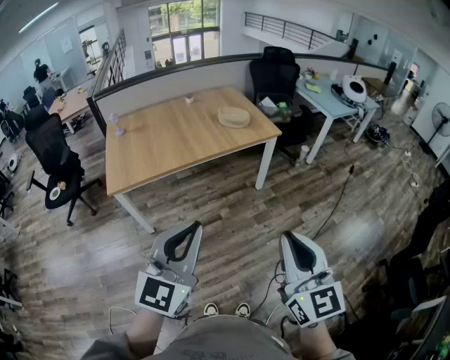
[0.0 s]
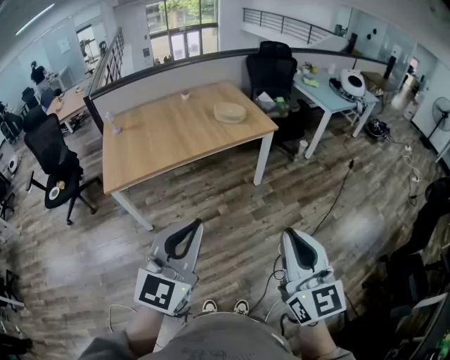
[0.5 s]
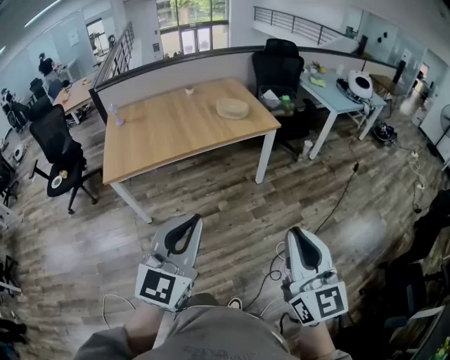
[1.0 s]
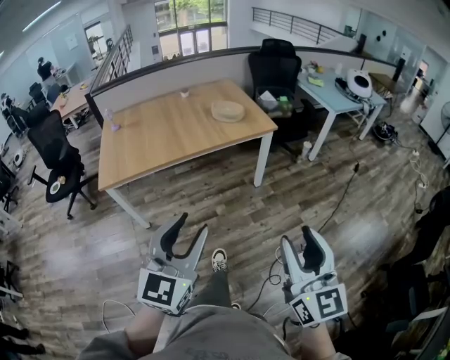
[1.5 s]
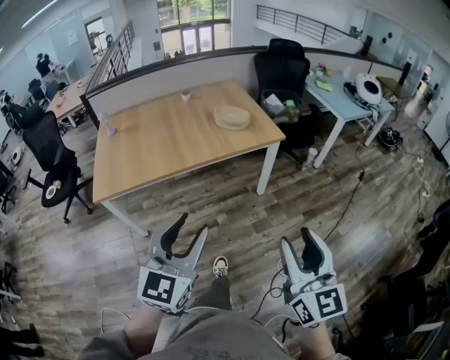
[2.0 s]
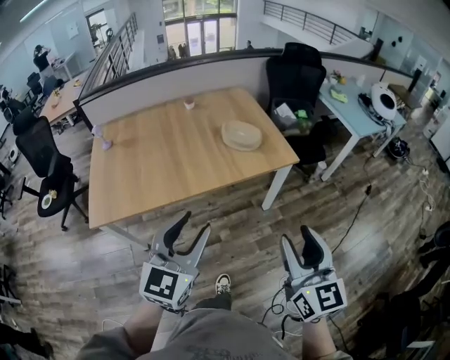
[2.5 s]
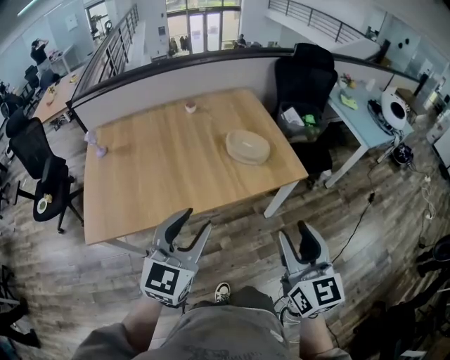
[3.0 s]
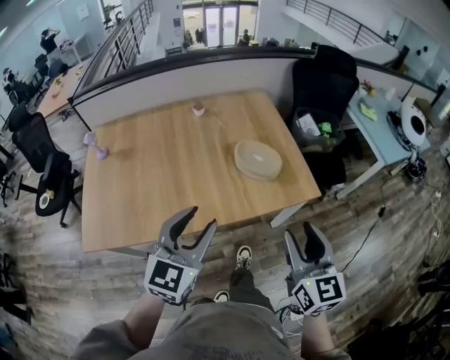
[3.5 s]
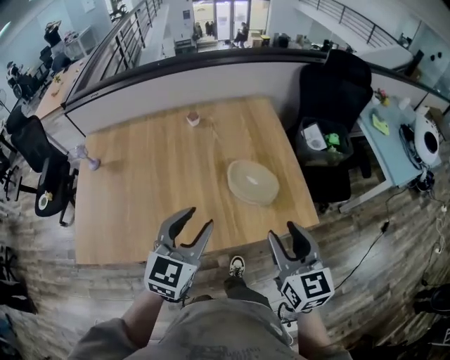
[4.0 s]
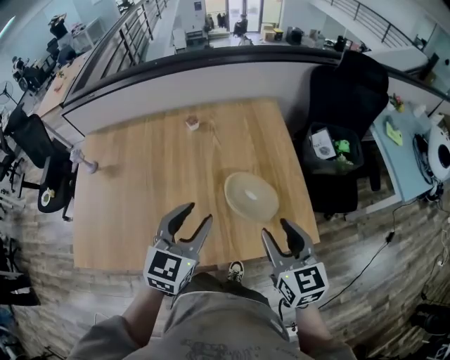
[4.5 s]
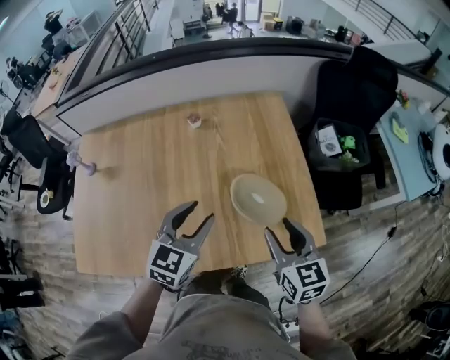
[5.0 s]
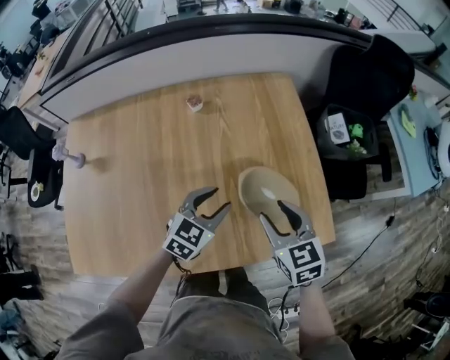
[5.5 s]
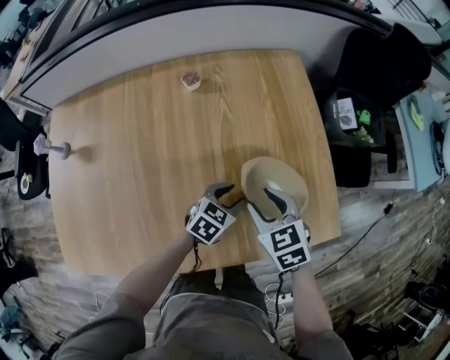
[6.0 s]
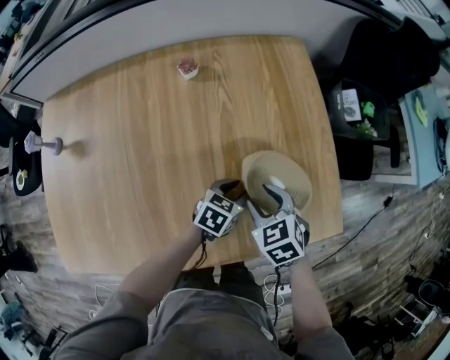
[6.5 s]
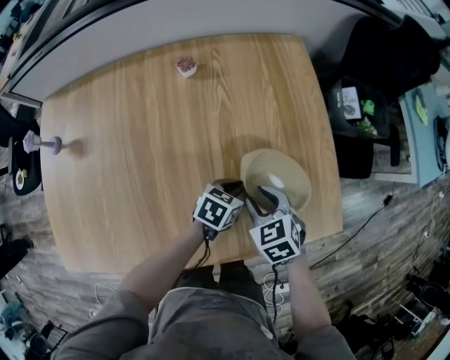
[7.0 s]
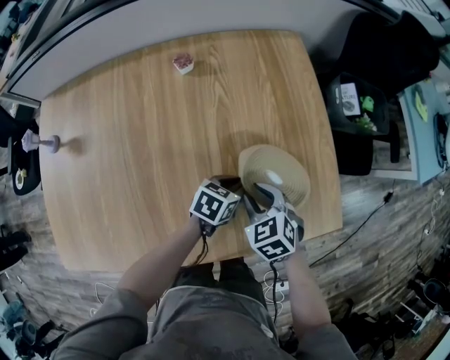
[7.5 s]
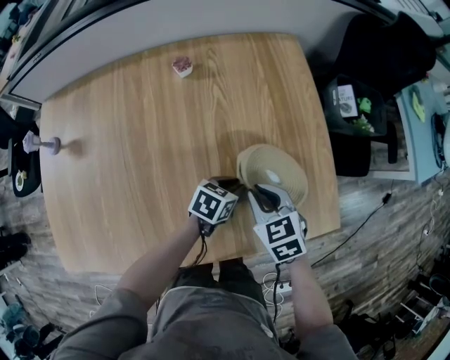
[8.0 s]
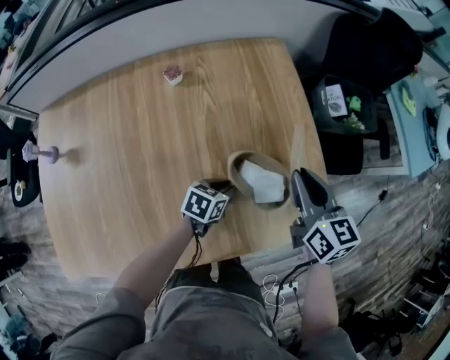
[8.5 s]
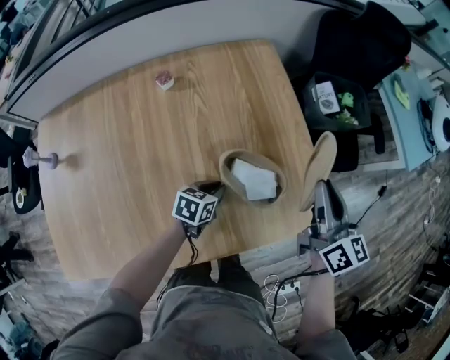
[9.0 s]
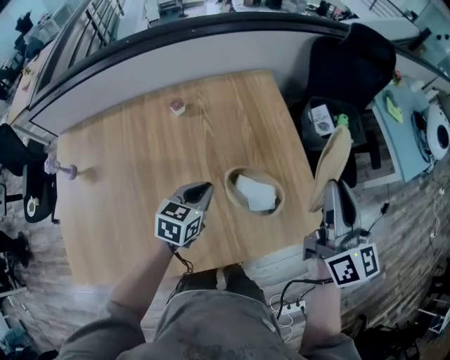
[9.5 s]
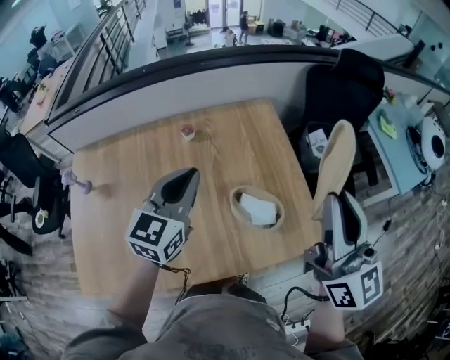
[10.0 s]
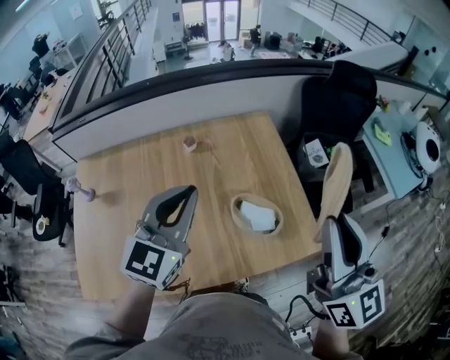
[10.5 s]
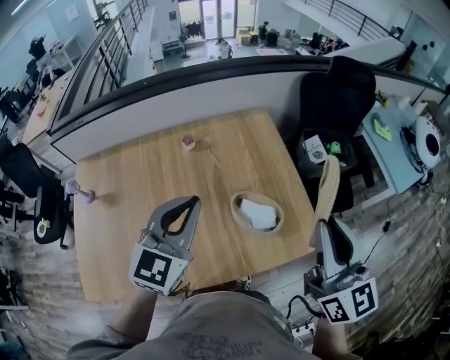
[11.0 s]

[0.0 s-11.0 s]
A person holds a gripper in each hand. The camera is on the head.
0.0 to 2.0 s: The left gripper travels forward by roughly 15 cm, and opens. Meanwhile the right gripper moves forward and to the right, roughly 20 cm, and opens up.
2.0 to 3.5 s: The two grippers travel together, forward, some 50 cm.
3.5 to 5.5 s: Both grippers move forward and downward, about 40 cm. The right gripper swivels about 30 degrees. The left gripper turns by about 20 degrees.
5.5 to 7.5 s: The grippers both shift downward by roughly 15 cm. The left gripper changes its angle by some 40 degrees, and closes up; the right gripper rotates approximately 30 degrees.
7.5 to 9.0 s: The right gripper goes about 25 cm upward and to the right, and angles its fingers upward, by about 50 degrees.
9.0 to 11.0 s: The left gripper shifts approximately 40 cm upward, and tilts its fingers roughly 30 degrees upward. The right gripper goes approximately 25 cm upward and backward, and swivels about 20 degrees.

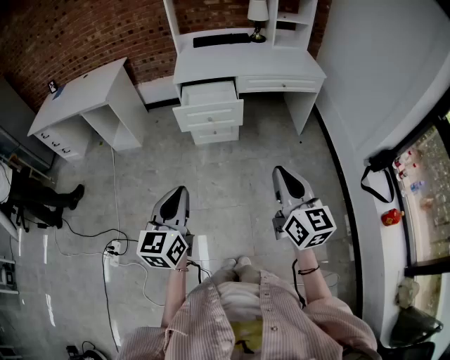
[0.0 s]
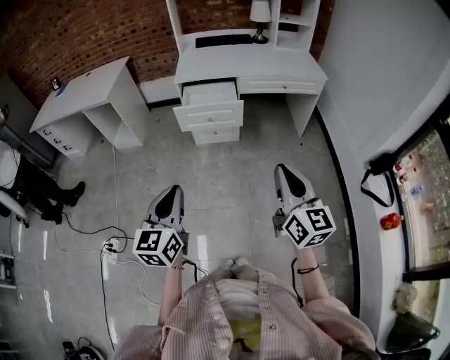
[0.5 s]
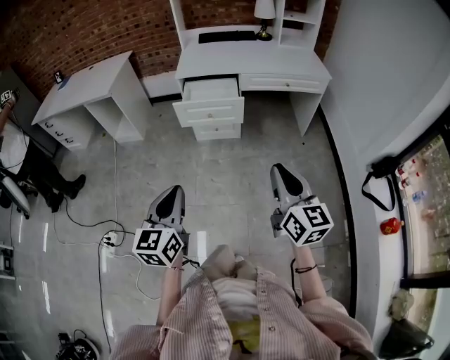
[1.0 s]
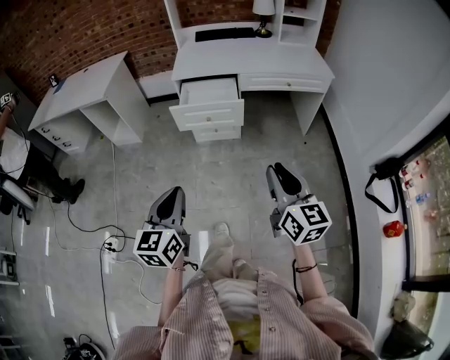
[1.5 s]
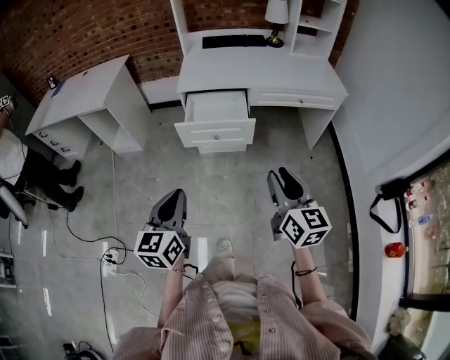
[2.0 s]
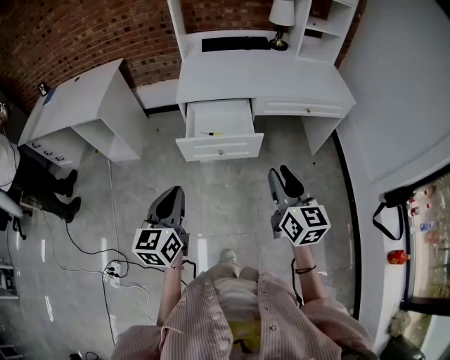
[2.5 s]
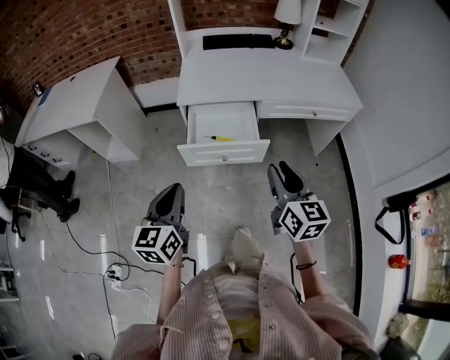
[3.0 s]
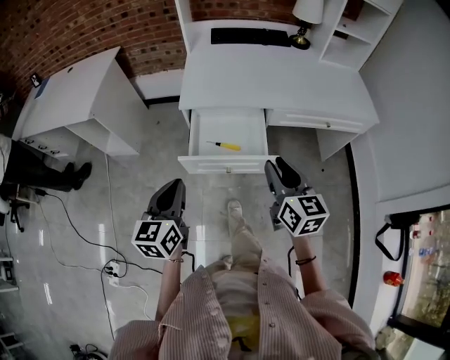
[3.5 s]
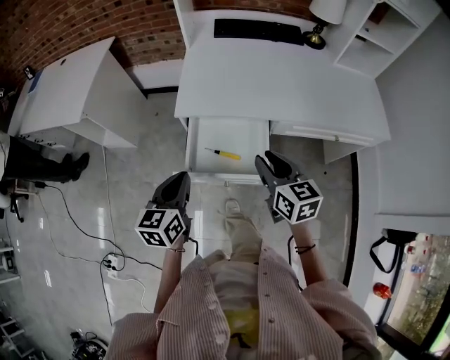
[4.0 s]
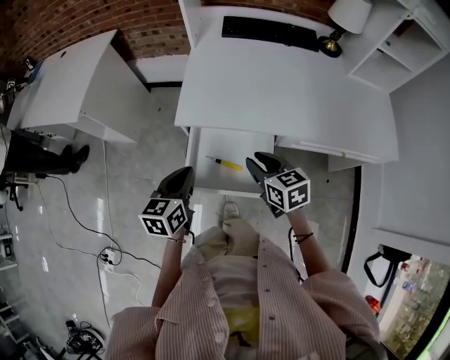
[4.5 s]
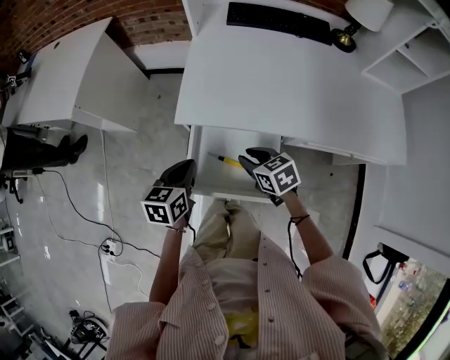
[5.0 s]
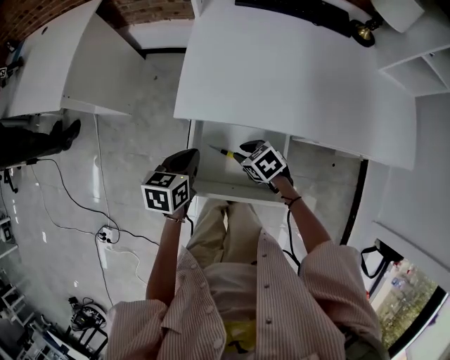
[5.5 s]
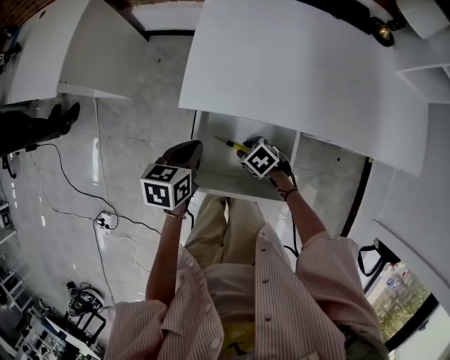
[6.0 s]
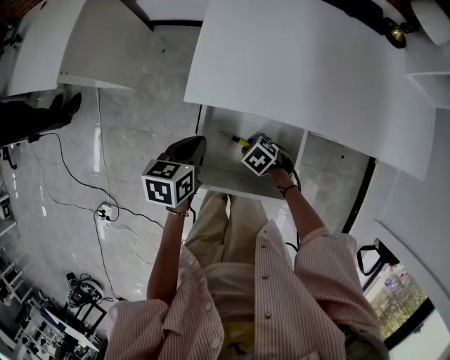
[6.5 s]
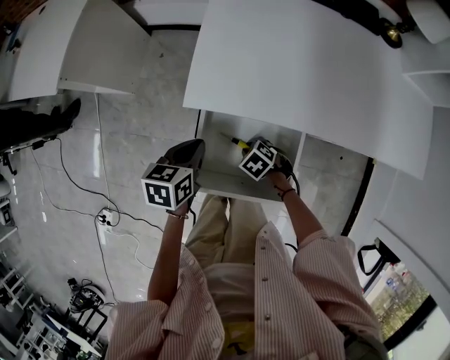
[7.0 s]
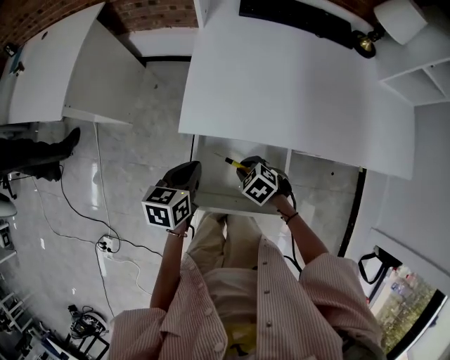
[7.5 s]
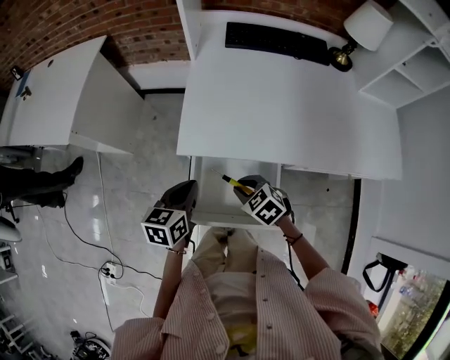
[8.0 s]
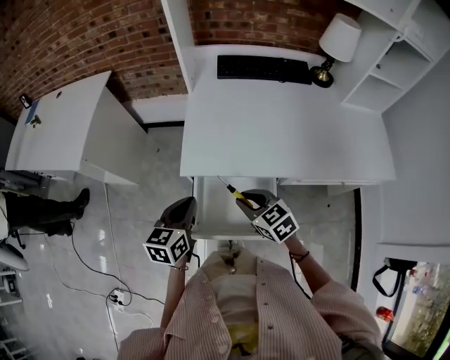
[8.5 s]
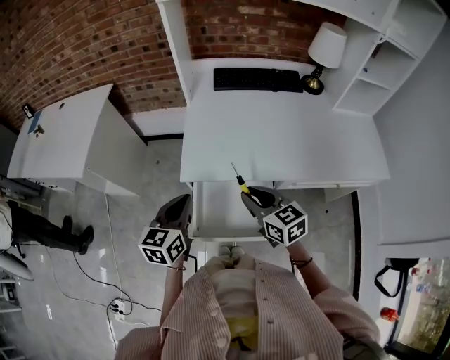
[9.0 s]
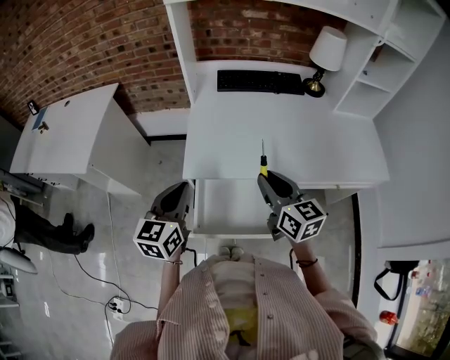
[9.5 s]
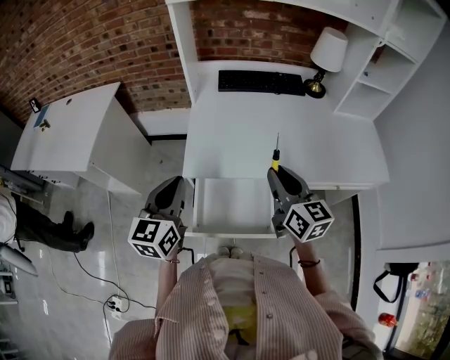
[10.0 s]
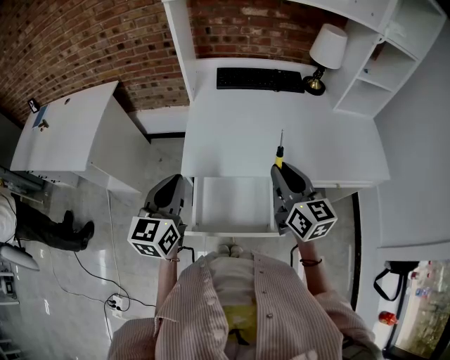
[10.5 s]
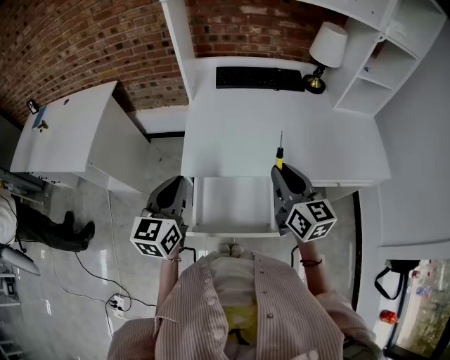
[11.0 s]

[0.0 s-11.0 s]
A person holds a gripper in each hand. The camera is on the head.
0.0 to 2.0 s: Both grippers move forward, some 20 cm. The right gripper opens its fingers.
2.0 to 3.5 s: Both grippers move forward, roughly 30 cm.
3.5 to 5.5 s: The right gripper shifts roughly 40 cm downward and forward, and angles its fingers downward, by about 40 degrees, while the left gripper is displaced forward and downward by roughly 30 cm, and changes its angle by some 30 degrees.
5.5 to 7.5 s: The right gripper moves roughly 10 cm downward and comes back.
7.5 to 9.0 s: The right gripper shifts some 25 cm upward, and points its fingers roughly 40 degrees further upward. The left gripper moves upward, some 15 cm, and changes its angle by approximately 20 degrees.
9.0 to 11.0 s: The left gripper travels upward by about 5 cm. Meanwhile the right gripper goes about 10 cm to the right and upward, and changes its angle by approximately 20 degrees.

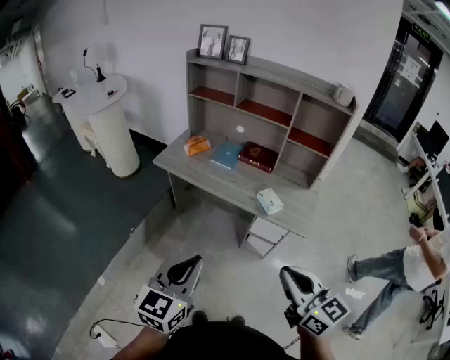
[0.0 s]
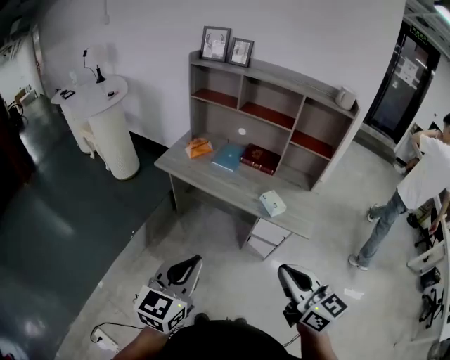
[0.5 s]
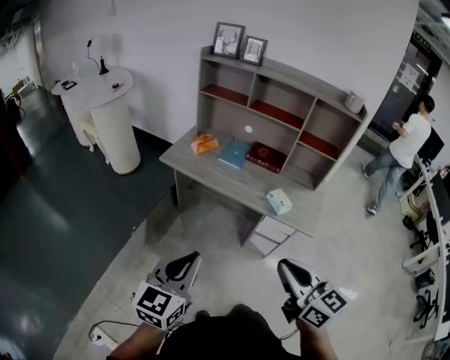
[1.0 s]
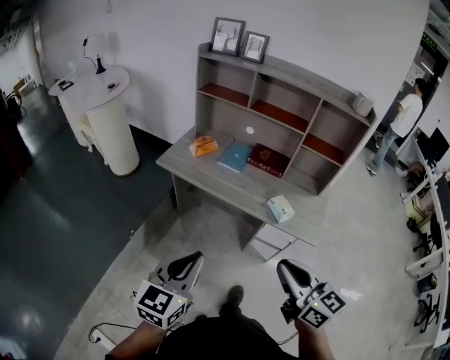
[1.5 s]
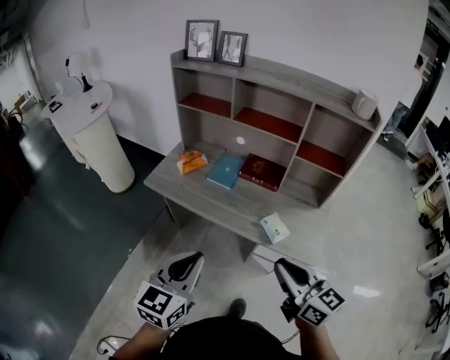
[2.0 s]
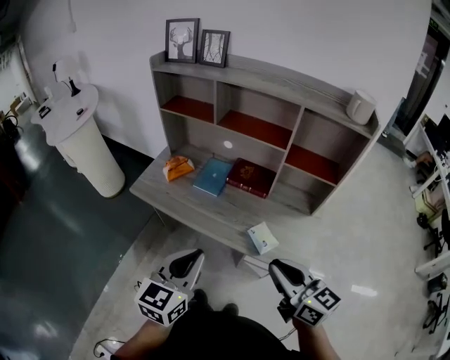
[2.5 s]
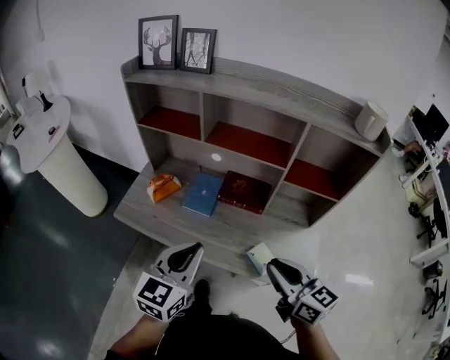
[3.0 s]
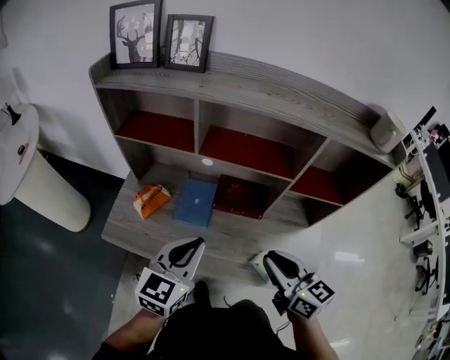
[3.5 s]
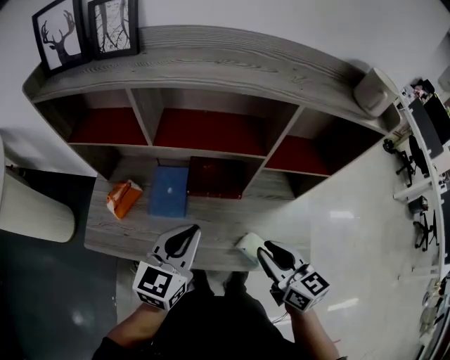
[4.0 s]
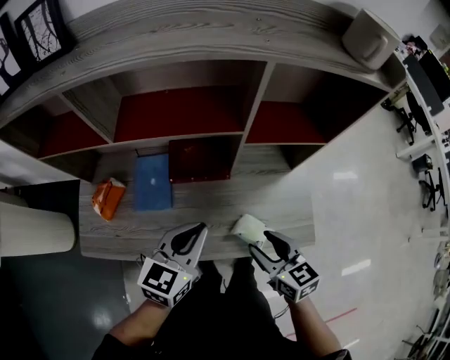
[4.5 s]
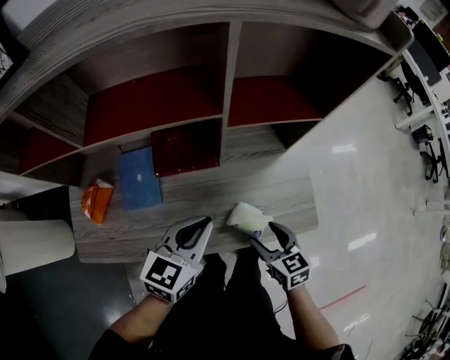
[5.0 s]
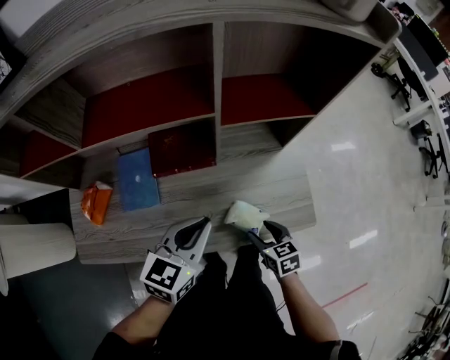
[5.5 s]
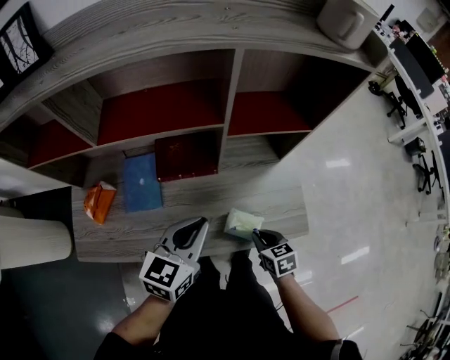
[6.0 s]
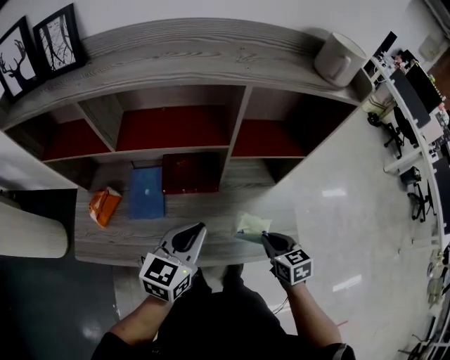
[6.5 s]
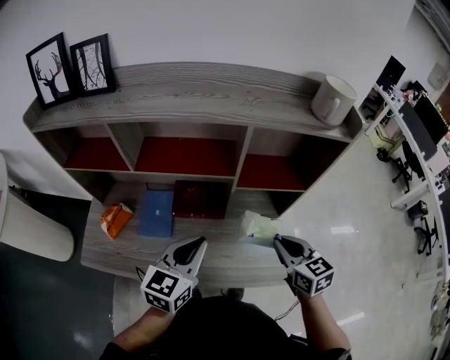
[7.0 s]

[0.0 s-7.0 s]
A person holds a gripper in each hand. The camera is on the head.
0.0 to 2.0 s: Both grippers move forward, roughly 20 cm.
2.0 to 3.5 s: Both grippers travel together forward, about 30 cm.
3.5 to 5.0 s: The left gripper shifts about 20 cm to the right and downward, and rotates approximately 30 degrees; the right gripper travels downward and to the right by approximately 25 cm, swivels about 30 degrees, and opens its fingers.
5.0 to 7.0 s: The left gripper travels upward by roughly 10 cm, while the right gripper goes about 20 cm upward and forward, and closes up.
